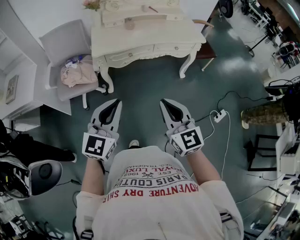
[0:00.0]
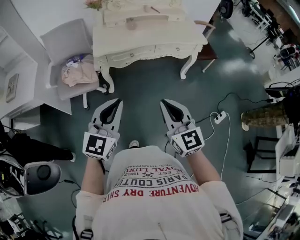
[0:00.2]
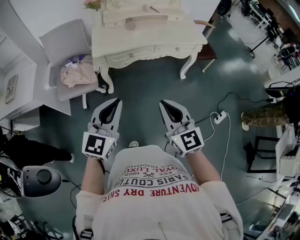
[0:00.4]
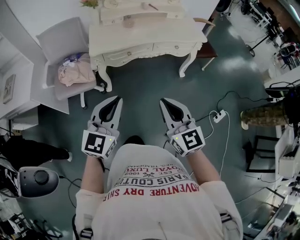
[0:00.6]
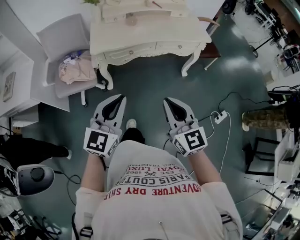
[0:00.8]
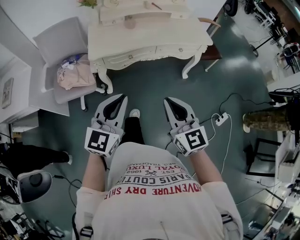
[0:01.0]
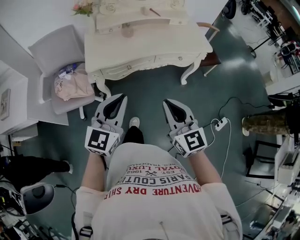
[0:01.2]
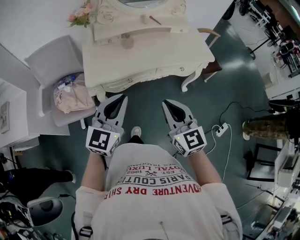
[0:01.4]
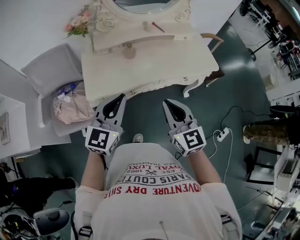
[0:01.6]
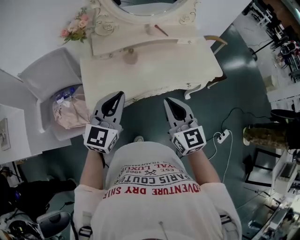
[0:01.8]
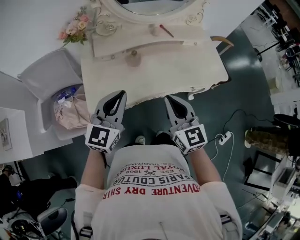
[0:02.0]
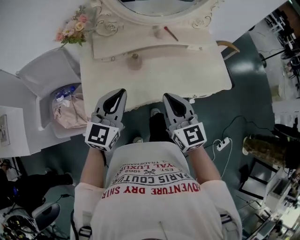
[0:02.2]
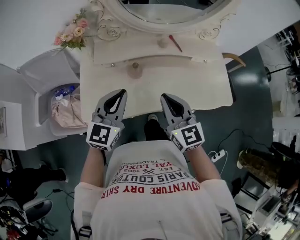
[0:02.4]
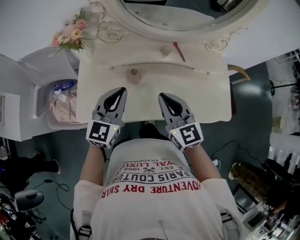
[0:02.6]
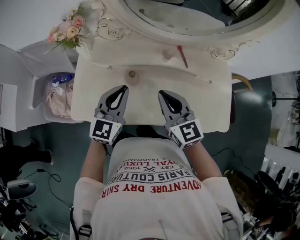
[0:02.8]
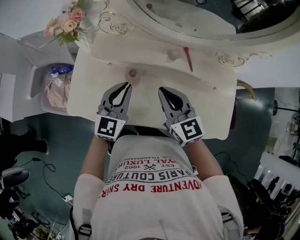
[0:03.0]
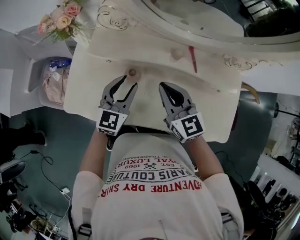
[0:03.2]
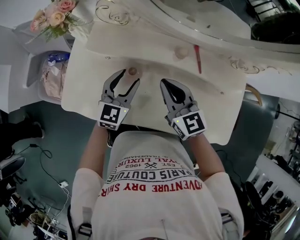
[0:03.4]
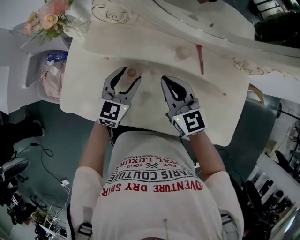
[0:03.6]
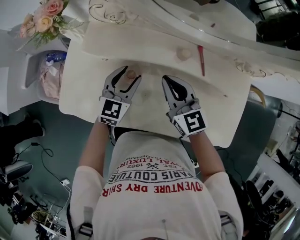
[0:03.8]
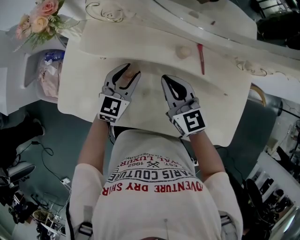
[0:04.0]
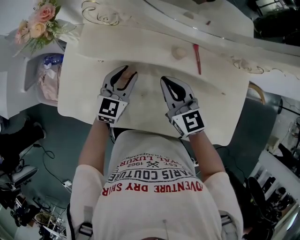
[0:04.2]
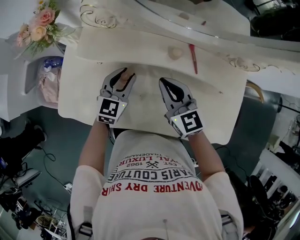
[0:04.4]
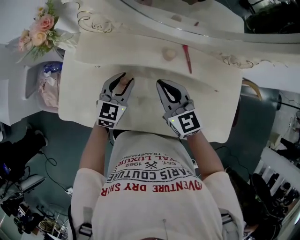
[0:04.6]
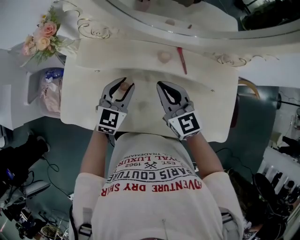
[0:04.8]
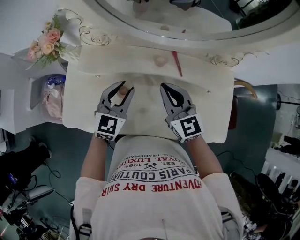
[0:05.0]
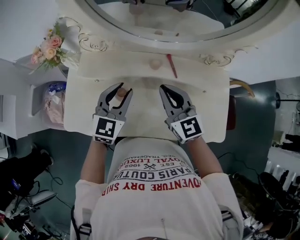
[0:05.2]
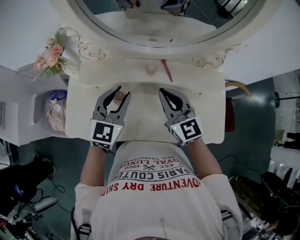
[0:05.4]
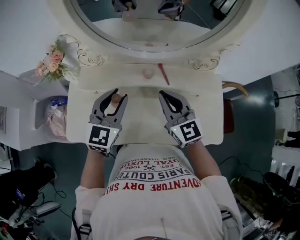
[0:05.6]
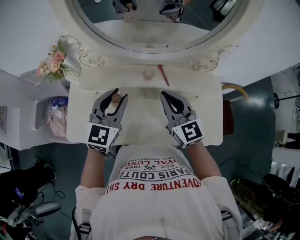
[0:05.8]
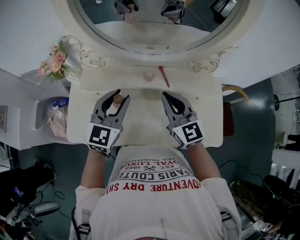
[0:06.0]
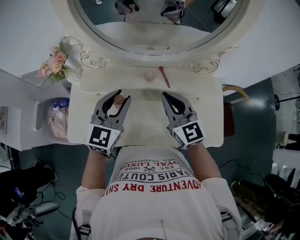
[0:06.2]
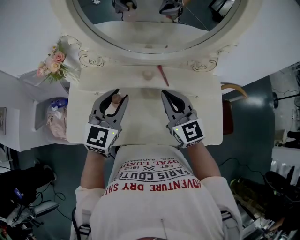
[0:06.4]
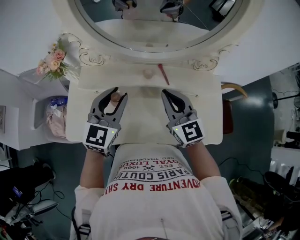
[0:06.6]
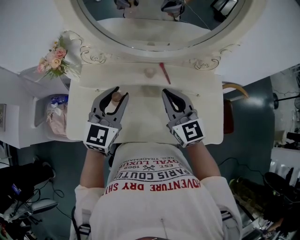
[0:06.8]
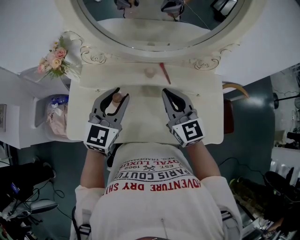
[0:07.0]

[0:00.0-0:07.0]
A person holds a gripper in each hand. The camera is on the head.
0.0 to 1.4 s: The two grippers go approximately 30 cm forward.
1.4 to 2.8 s: The pair of grippers is taken forward, roughly 40 cm. The right gripper changes its angle by approximately 20 degrees, while the left gripper swivels about 20 degrees.
2.8 to 4.2 s: The two grippers go roughly 15 cm downward and forward. The left gripper opens its fingers.
4.2 to 5.6 s: The right gripper is displaced upward and to the right by approximately 15 cm, while the left gripper is displaced upward by some 20 cm.
5.6 to 7.0 s: There are only small adjustments of the grippers.

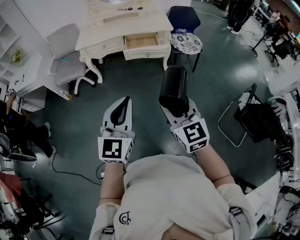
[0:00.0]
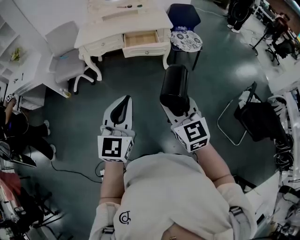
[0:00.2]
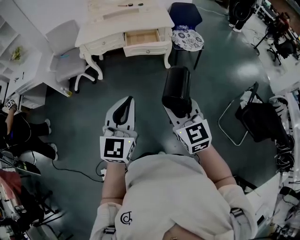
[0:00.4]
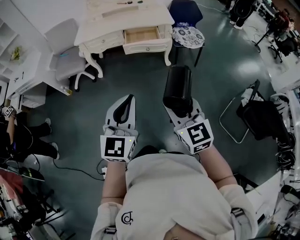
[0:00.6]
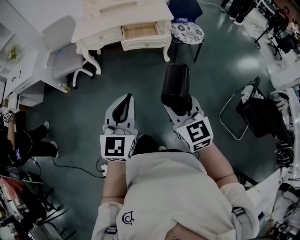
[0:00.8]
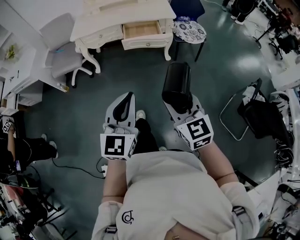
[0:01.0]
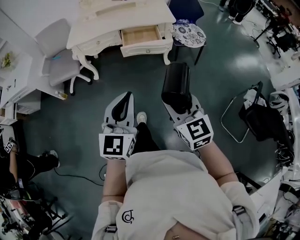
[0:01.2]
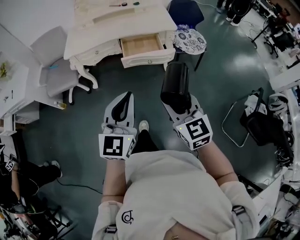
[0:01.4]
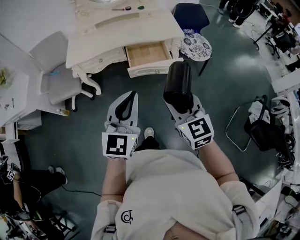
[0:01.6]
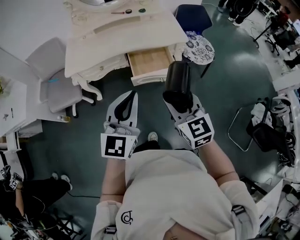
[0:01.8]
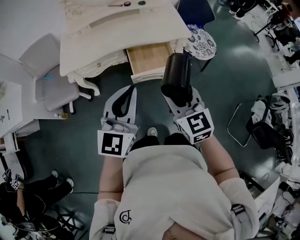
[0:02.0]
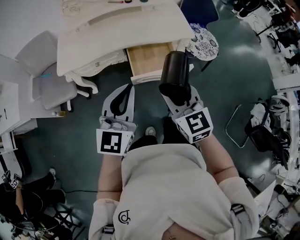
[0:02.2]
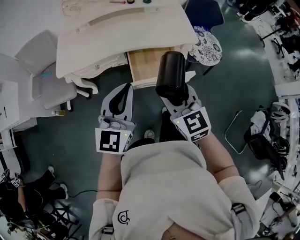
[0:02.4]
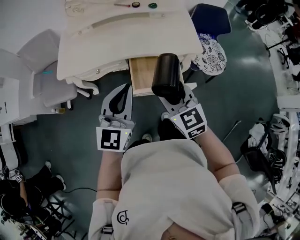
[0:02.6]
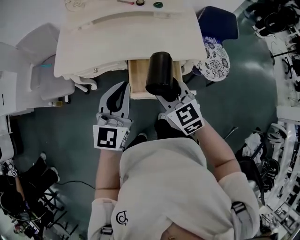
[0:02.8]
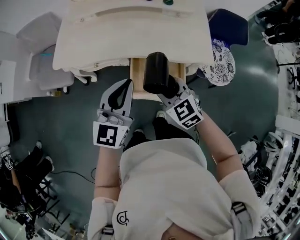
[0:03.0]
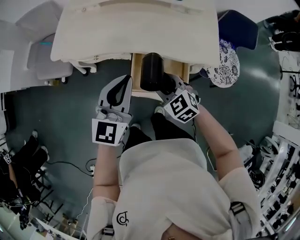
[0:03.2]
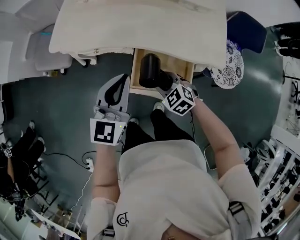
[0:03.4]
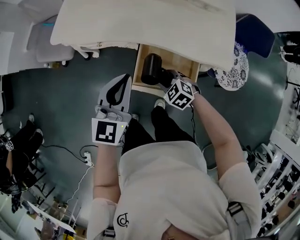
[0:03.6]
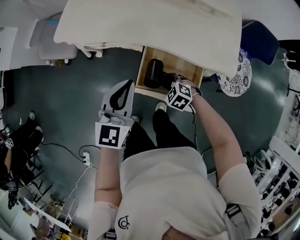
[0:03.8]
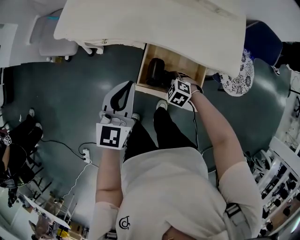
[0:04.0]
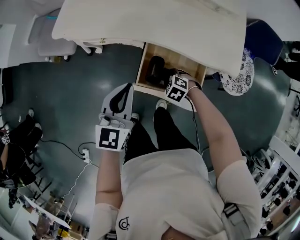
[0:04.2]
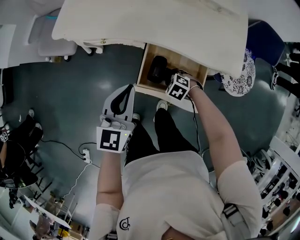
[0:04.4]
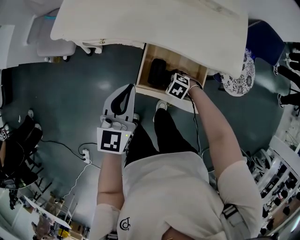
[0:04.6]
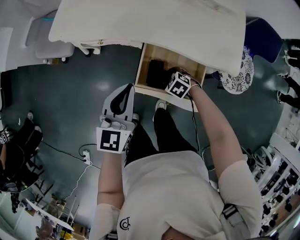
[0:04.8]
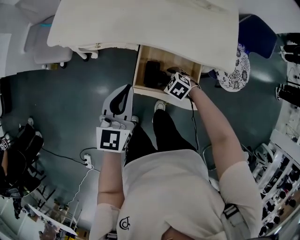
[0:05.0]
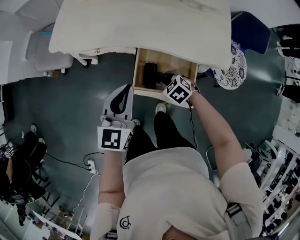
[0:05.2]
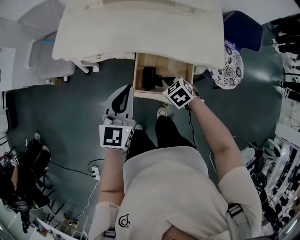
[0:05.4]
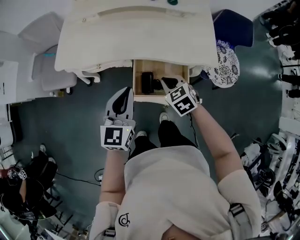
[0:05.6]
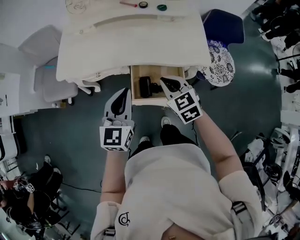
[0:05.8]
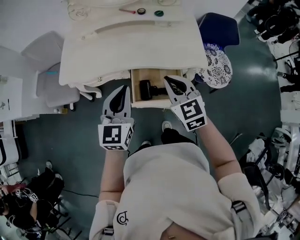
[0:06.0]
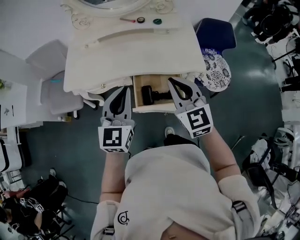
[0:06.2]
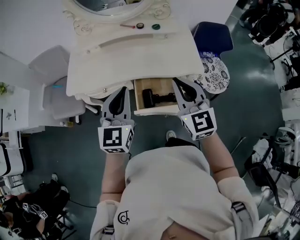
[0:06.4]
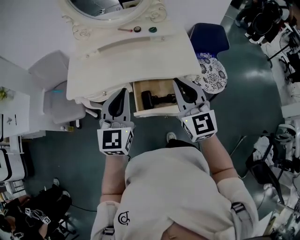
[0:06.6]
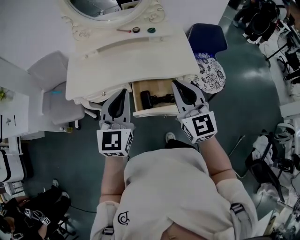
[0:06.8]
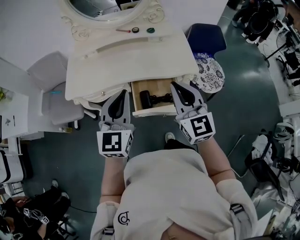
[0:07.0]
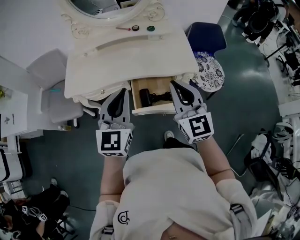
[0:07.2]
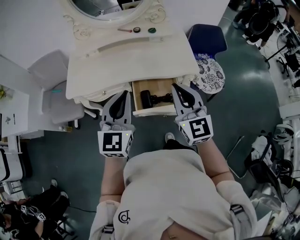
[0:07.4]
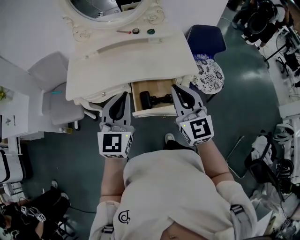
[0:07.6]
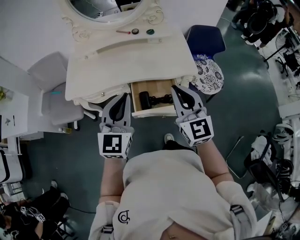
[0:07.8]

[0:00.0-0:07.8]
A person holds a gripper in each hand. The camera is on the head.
0.0 to 1.6 s: The grippers both shift forward by about 30 cm.
1.6 to 3.2 s: The right gripper changes place by approximately 40 cm, and rotates approximately 40 degrees, while the left gripper ends up approximately 40 cm from where it was.
3.2 to 4.6 s: The left gripper heads downward, covering some 10 cm, while the right gripper goes roughly 25 cm downward, and tips its fingers downward by some 30 degrees.
4.6 to 6.2 s: The right gripper shifts approximately 50 cm upward, tips its fingers upward by about 60 degrees, and closes; the left gripper goes roughly 15 cm upward.
6.2 to 7.8 s: The left gripper moves about 5 cm; the right gripper travels backward by roughly 5 cm.

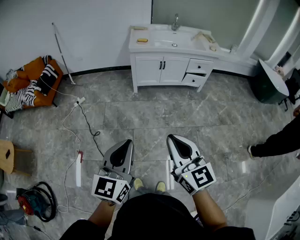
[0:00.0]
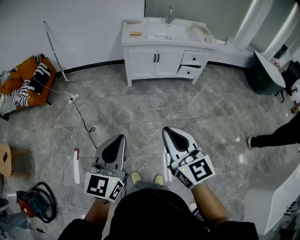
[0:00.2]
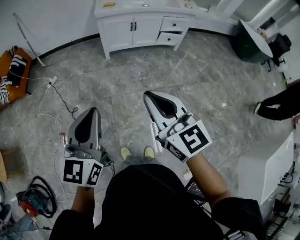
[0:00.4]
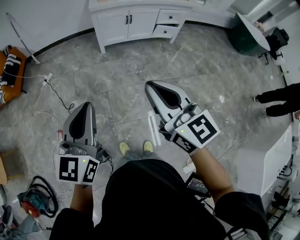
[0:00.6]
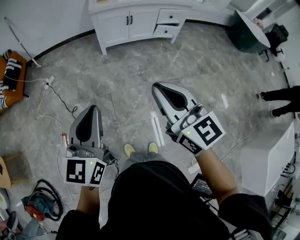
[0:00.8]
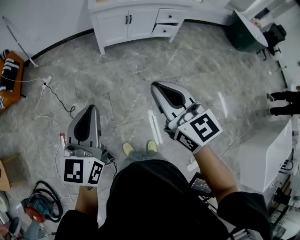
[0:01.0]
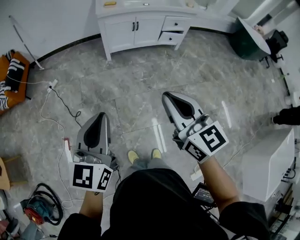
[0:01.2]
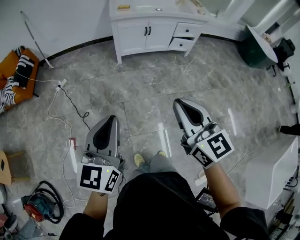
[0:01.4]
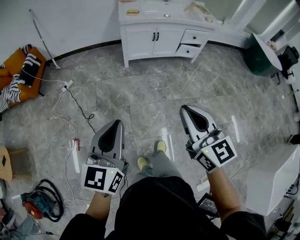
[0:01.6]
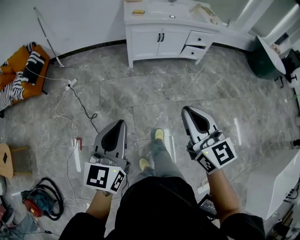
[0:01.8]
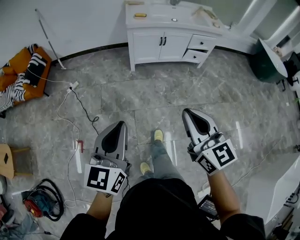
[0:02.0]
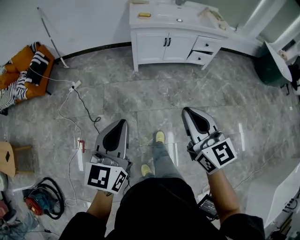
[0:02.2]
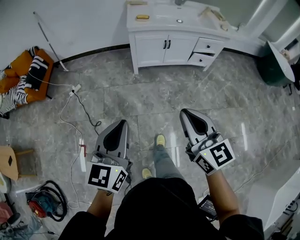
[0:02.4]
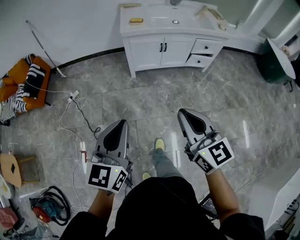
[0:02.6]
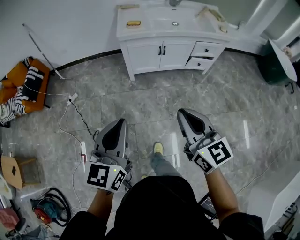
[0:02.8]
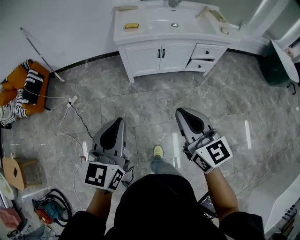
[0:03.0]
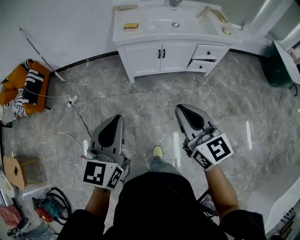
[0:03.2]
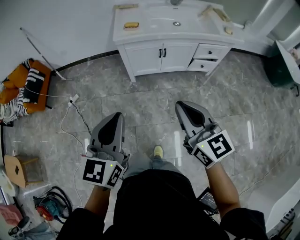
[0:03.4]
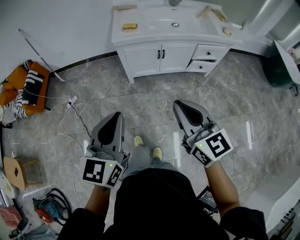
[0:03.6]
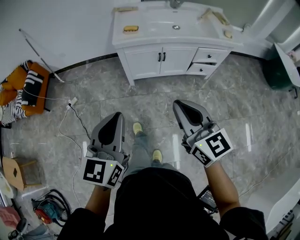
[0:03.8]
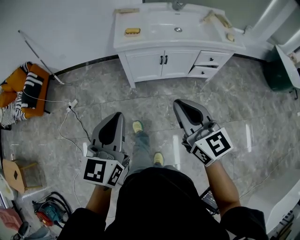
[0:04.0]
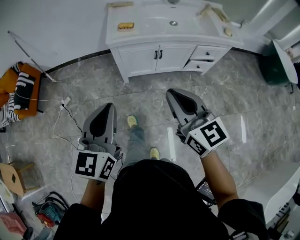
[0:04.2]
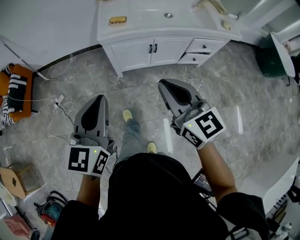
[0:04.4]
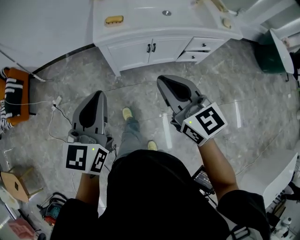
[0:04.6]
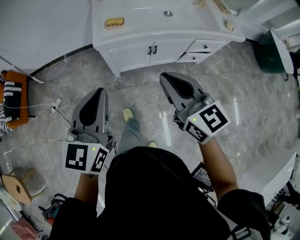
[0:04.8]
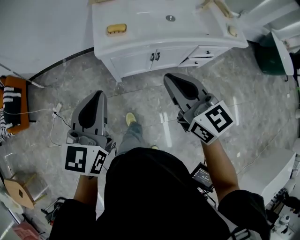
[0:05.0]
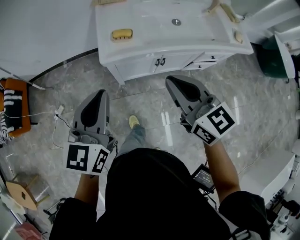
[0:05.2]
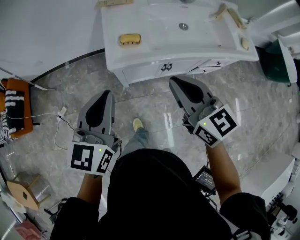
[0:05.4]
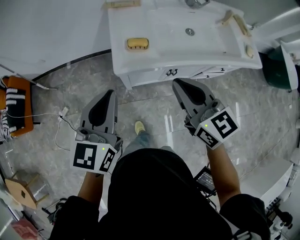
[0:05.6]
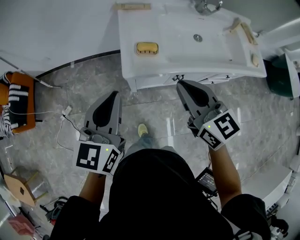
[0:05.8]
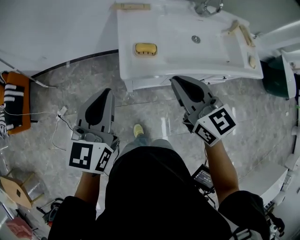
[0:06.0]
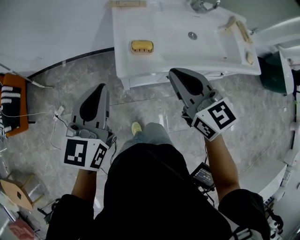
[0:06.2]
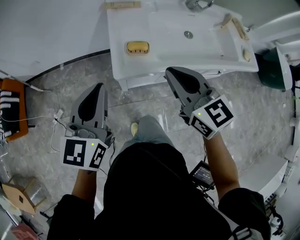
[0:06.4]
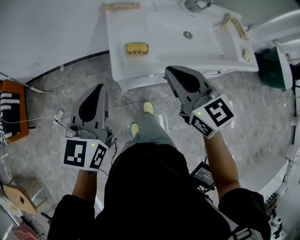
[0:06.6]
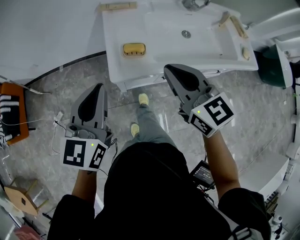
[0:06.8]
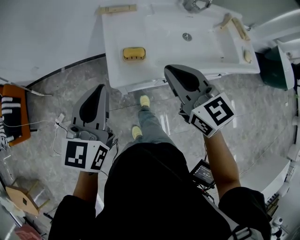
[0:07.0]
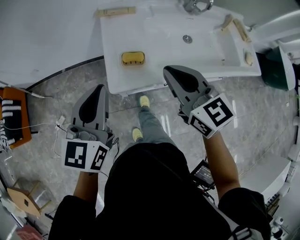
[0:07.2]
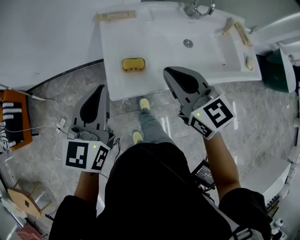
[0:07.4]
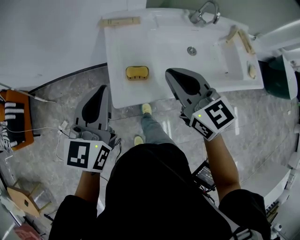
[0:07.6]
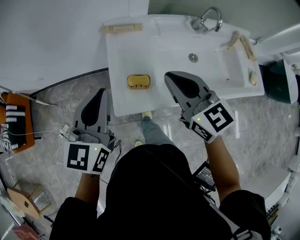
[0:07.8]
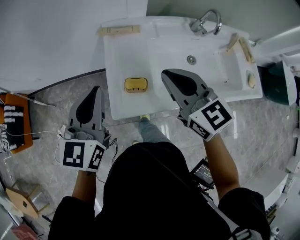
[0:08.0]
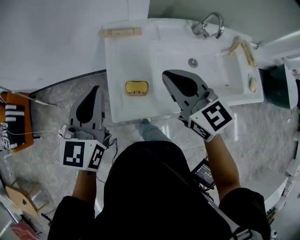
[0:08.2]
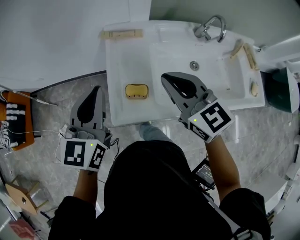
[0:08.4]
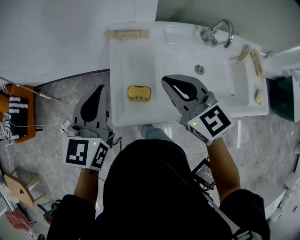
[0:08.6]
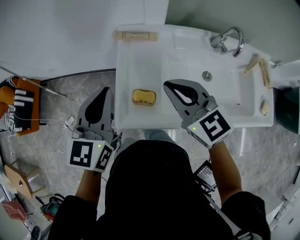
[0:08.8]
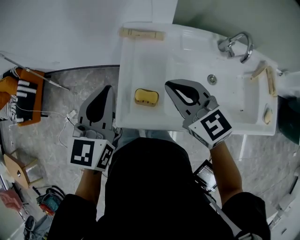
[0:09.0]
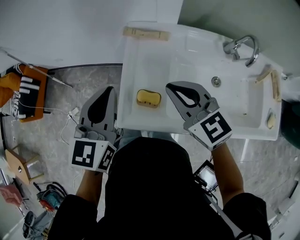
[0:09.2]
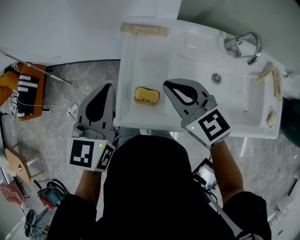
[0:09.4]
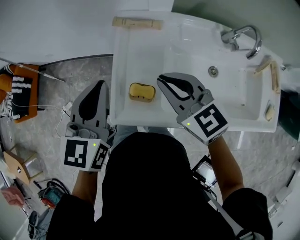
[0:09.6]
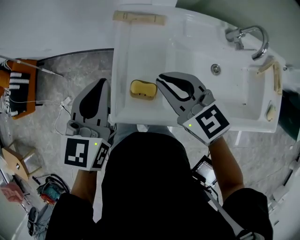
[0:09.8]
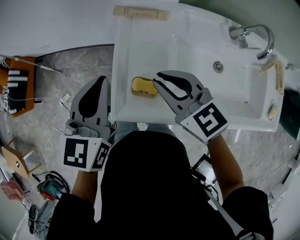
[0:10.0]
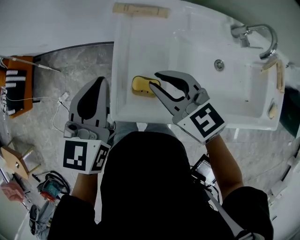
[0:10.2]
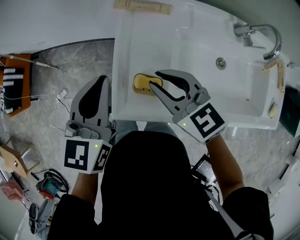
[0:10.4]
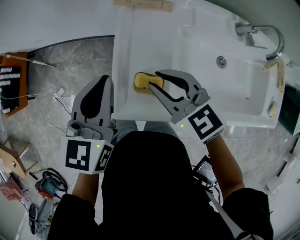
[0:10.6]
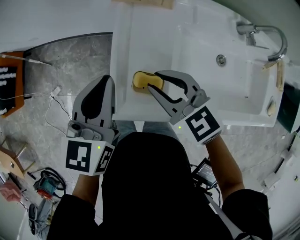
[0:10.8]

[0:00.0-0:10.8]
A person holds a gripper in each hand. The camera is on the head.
0.0 to 1.6 s: The left gripper moves to the left, about 10 cm, while the right gripper moves about 5 cm.
1.6 to 3.0 s: Both grippers move forward, about 30 cm.
3.0 to 4.6 s: The grippers both shift forward by approximately 25 cm.
4.6 to 6.2 s: The two grippers go about 30 cm forward.
6.2 to 7.8 s: The grippers both shift forward by approximately 15 cm.
7.8 to 9.2 s: The left gripper travels forward by approximately 5 cm, while the right gripper travels forward and downward by some 10 cm, and turns by approximately 20 degrees.
9.2 to 10.8 s: The right gripper heads downward and to the left, covering approximately 10 cm, and opens, while the left gripper travels downward by about 10 cm.
